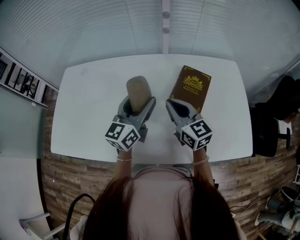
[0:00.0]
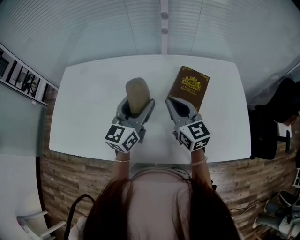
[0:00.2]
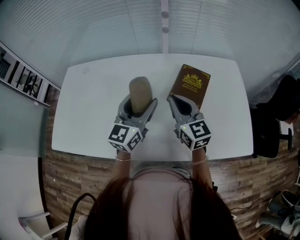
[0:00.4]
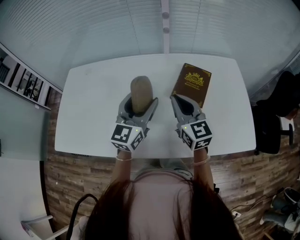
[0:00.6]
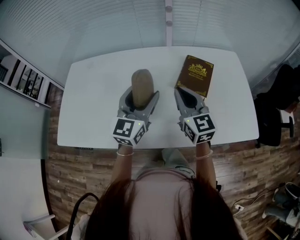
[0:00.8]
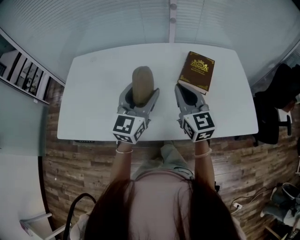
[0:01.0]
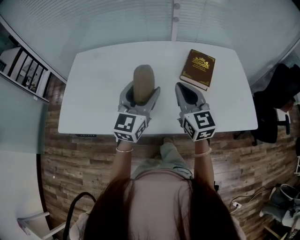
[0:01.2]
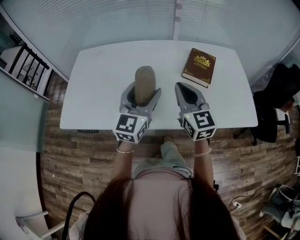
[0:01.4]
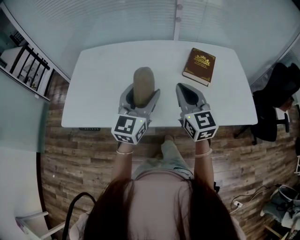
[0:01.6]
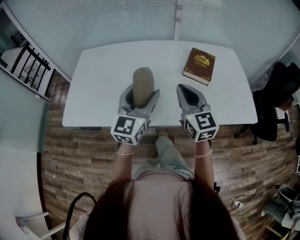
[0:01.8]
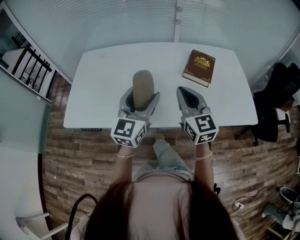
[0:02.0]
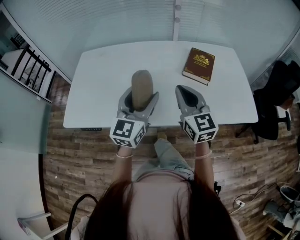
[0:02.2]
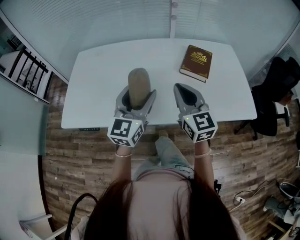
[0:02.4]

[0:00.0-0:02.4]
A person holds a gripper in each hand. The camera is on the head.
0:00.0 to 0:01.2: The left gripper goes some 15 cm backward and to the left. The right gripper travels backward by some 10 cm.
0:01.2 to 0:02.4: Both grippers move backward, roughly 5 cm.

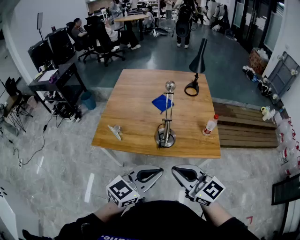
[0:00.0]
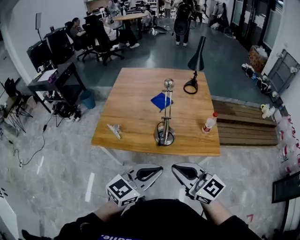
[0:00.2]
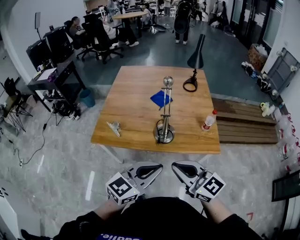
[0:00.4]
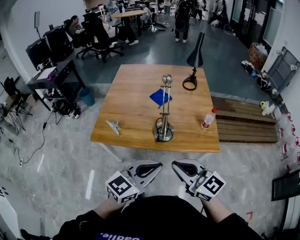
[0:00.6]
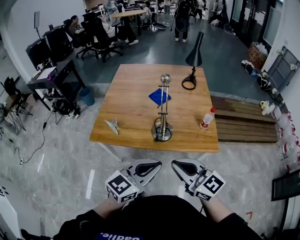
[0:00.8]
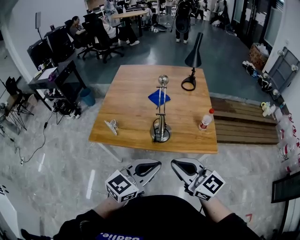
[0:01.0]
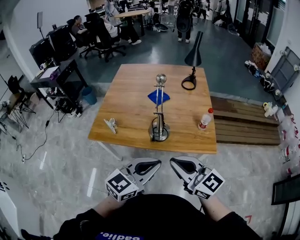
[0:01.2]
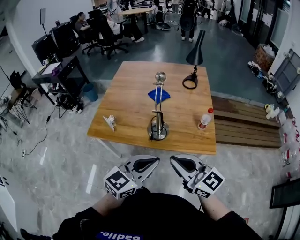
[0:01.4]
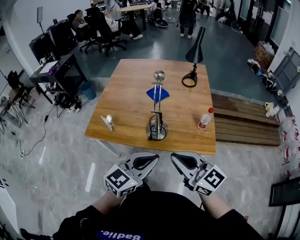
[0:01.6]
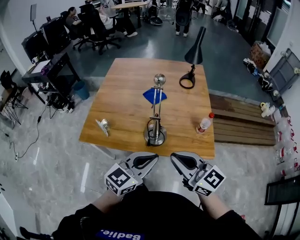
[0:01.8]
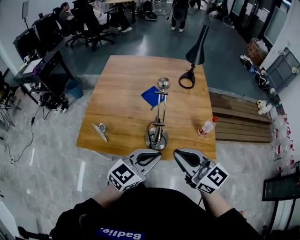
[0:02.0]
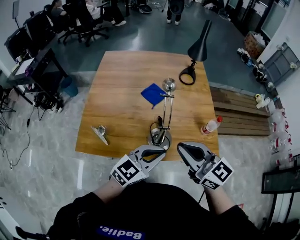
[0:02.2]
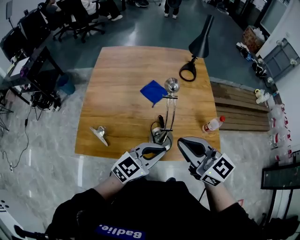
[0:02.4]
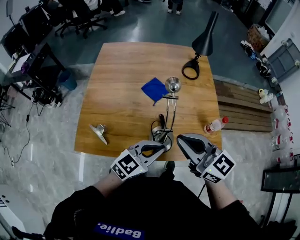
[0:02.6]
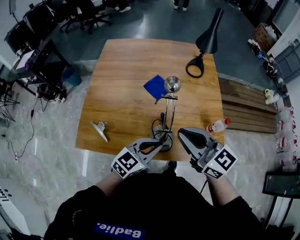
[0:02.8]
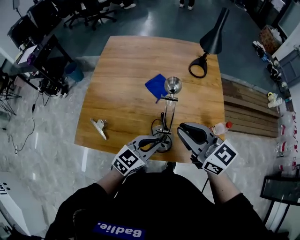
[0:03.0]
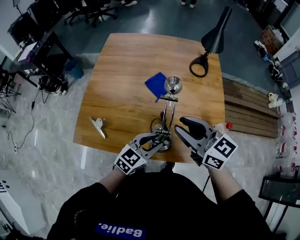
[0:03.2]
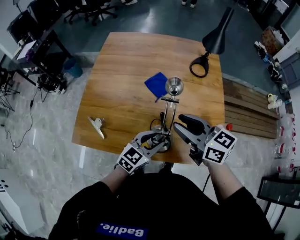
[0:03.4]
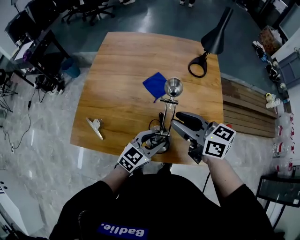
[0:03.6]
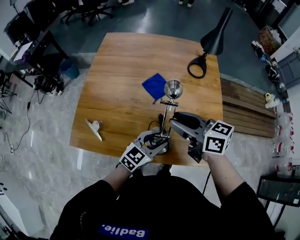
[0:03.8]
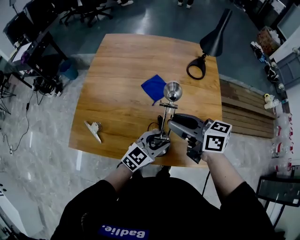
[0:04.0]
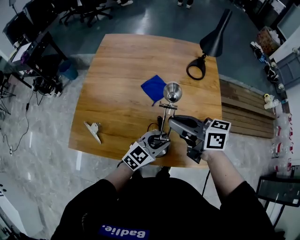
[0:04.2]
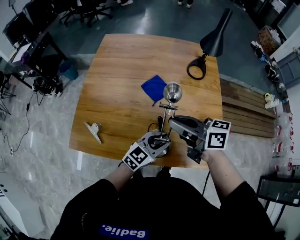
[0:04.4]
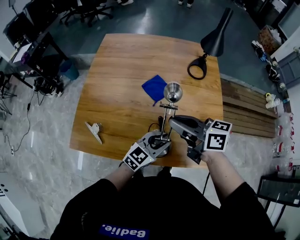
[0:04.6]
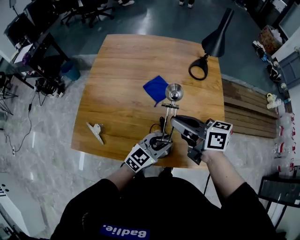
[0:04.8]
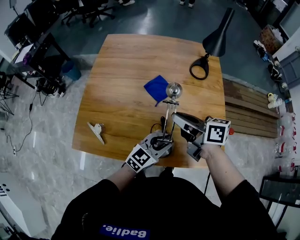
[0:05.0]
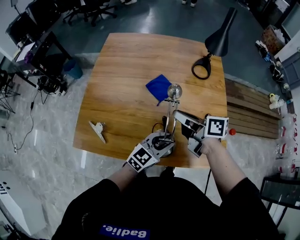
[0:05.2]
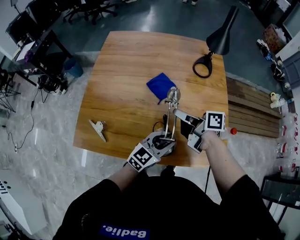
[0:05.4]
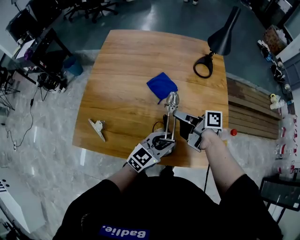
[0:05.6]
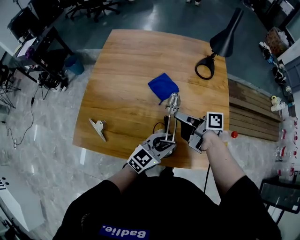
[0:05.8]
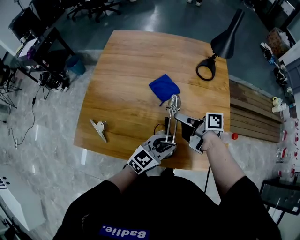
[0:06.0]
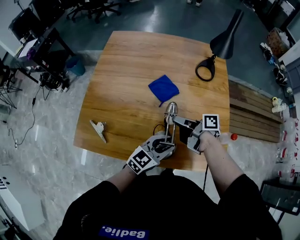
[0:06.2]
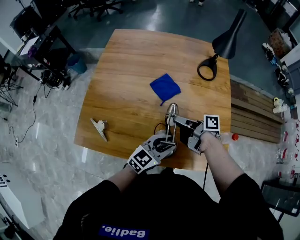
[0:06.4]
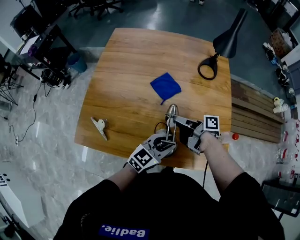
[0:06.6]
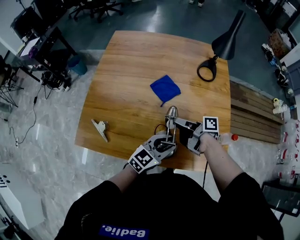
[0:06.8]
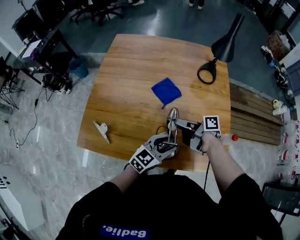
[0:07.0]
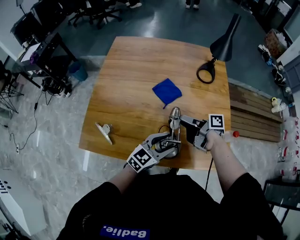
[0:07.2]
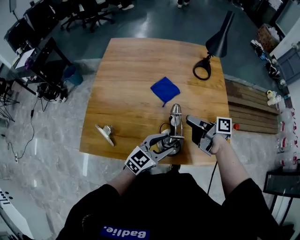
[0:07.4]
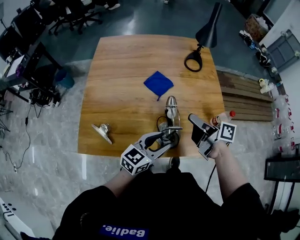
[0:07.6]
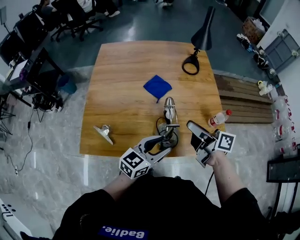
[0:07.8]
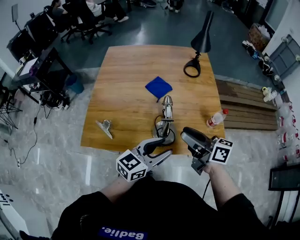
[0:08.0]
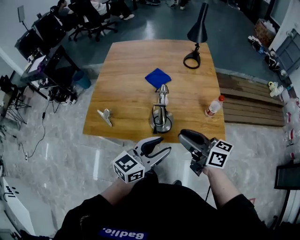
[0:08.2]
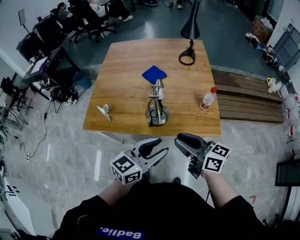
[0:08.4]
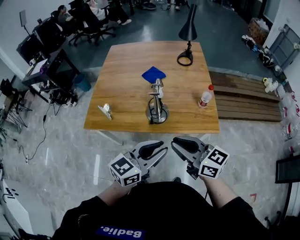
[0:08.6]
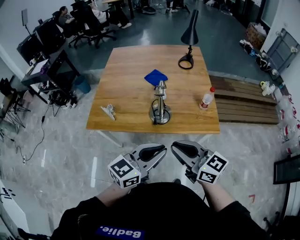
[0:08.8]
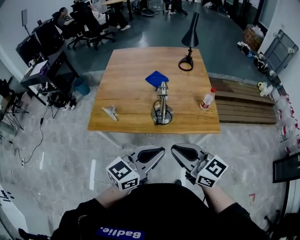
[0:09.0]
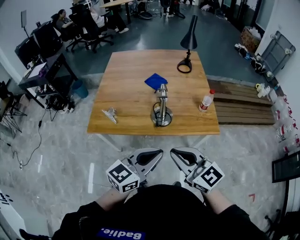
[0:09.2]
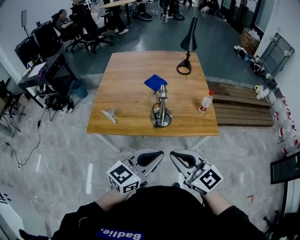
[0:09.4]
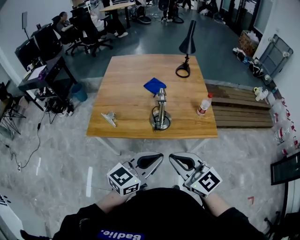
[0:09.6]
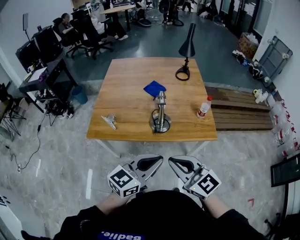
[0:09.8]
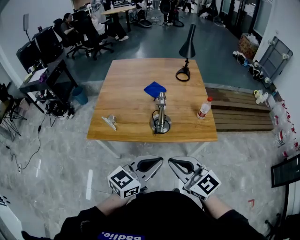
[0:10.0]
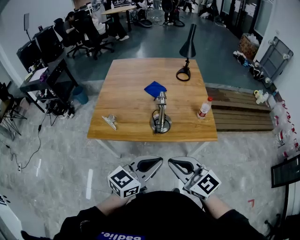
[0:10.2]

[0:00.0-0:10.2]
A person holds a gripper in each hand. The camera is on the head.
0:00.0 to 0:01.4: Both grippers move to the right, some 5 cm.
0:01.4 to 0:03.0: The left gripper heads forward and downward, covering approximately 30 cm. The right gripper goes about 30 cm forward.
0:03.0 to 0:04.4: The right gripper travels forward by approximately 5 cm, turns by some 30 degrees, and opens, then closes again, while the left gripper moves some 5 cm, and opens.
0:04.4 to 0:05.8: The right gripper heads downward and forward, covering roughly 15 cm, and rotates some 40 degrees.
0:05.8 to 0:07.2: The right gripper opens up. Meanwhile the left gripper opens up.
0:07.2 to 0:08.8: Both grippers move backward and upward, some 40 cm. The left gripper closes its fingers. Meanwhile the right gripper twists about 70 degrees counterclockwise, seen from behind, and closes.
0:08.8 to 0:10.2: The right gripper changes place by approximately 5 cm, and turns by about 20 degrees.

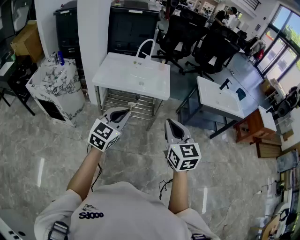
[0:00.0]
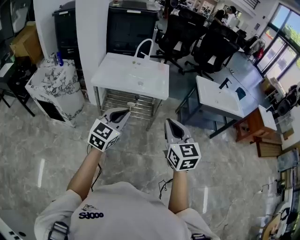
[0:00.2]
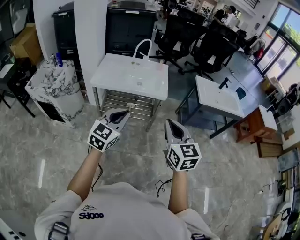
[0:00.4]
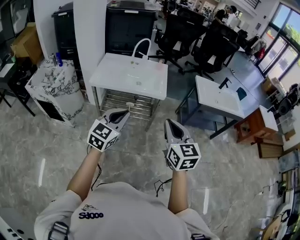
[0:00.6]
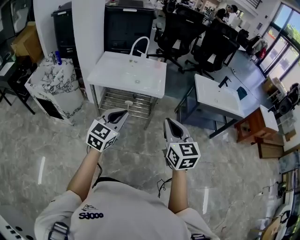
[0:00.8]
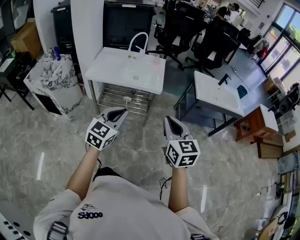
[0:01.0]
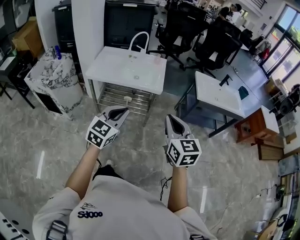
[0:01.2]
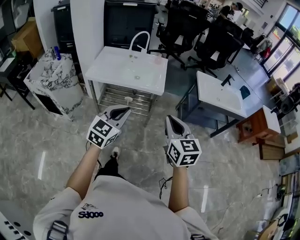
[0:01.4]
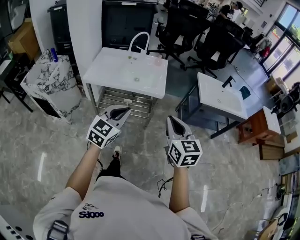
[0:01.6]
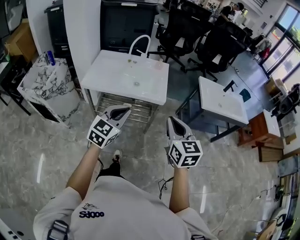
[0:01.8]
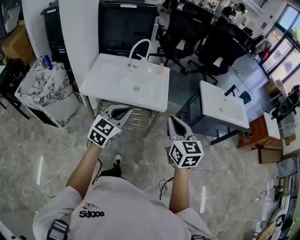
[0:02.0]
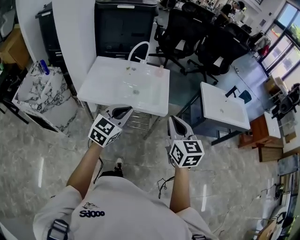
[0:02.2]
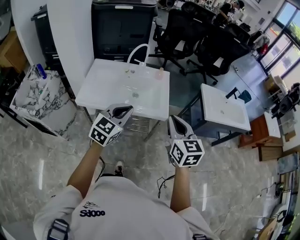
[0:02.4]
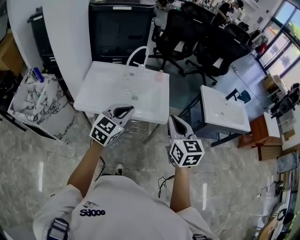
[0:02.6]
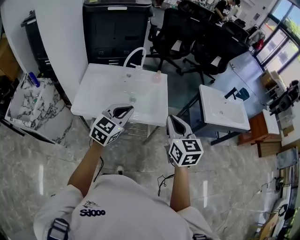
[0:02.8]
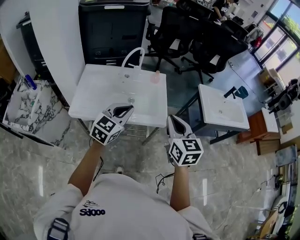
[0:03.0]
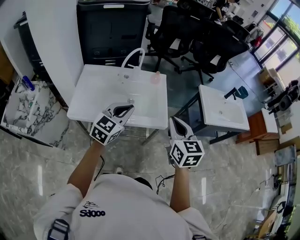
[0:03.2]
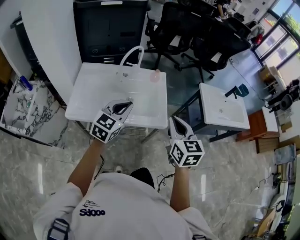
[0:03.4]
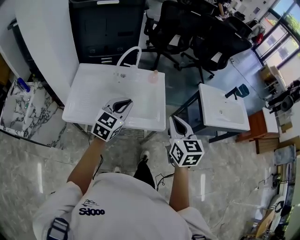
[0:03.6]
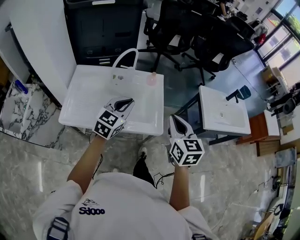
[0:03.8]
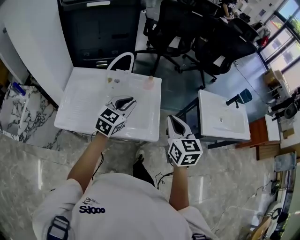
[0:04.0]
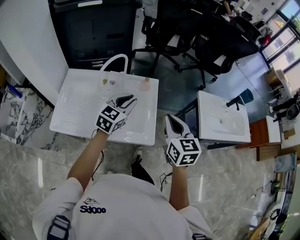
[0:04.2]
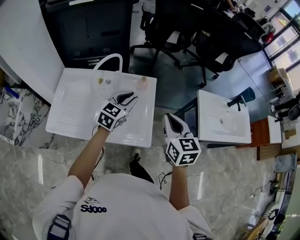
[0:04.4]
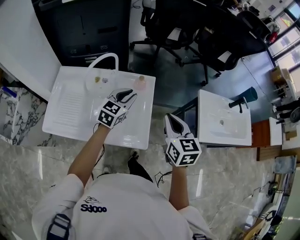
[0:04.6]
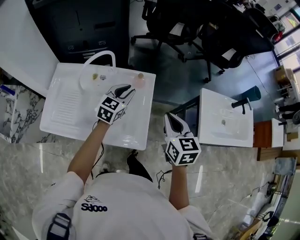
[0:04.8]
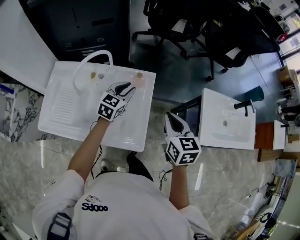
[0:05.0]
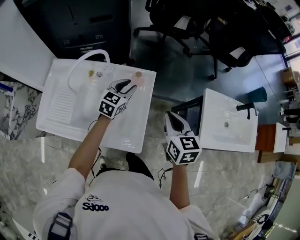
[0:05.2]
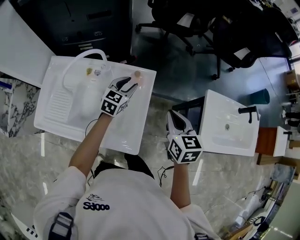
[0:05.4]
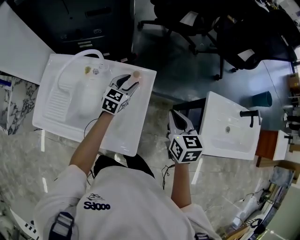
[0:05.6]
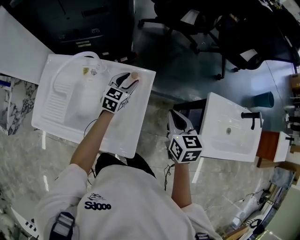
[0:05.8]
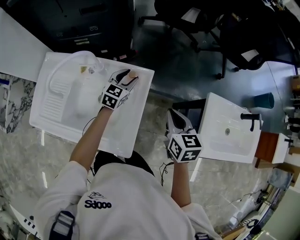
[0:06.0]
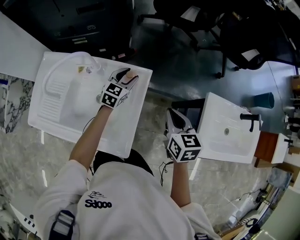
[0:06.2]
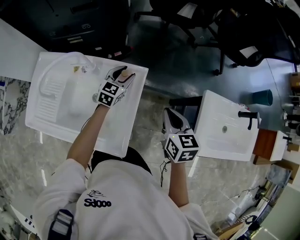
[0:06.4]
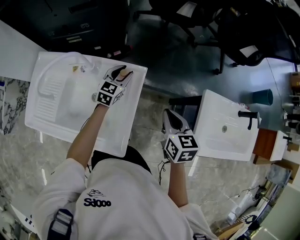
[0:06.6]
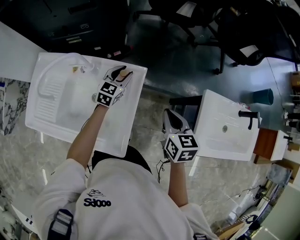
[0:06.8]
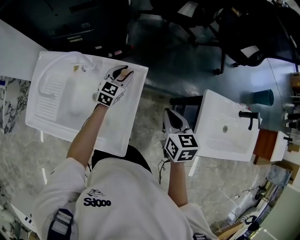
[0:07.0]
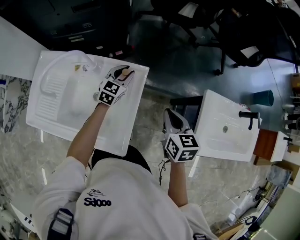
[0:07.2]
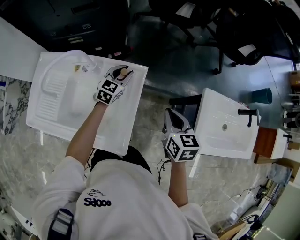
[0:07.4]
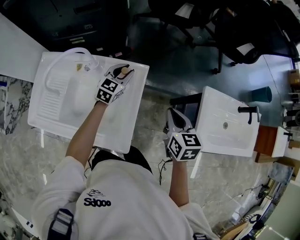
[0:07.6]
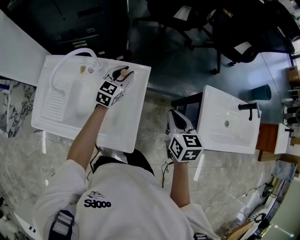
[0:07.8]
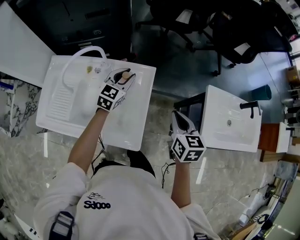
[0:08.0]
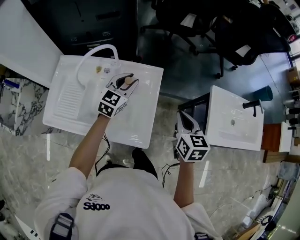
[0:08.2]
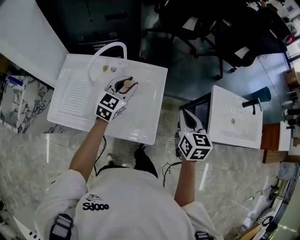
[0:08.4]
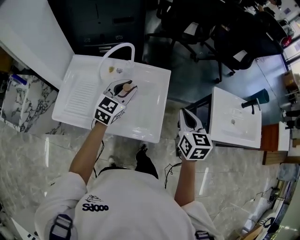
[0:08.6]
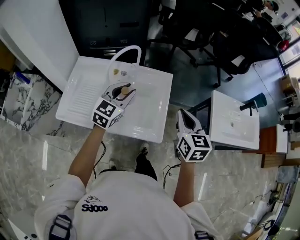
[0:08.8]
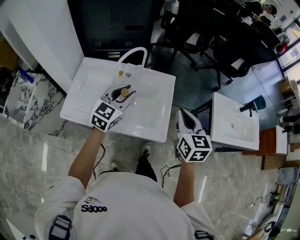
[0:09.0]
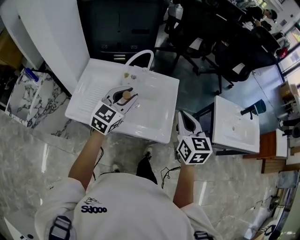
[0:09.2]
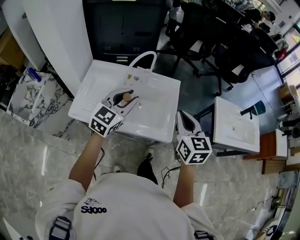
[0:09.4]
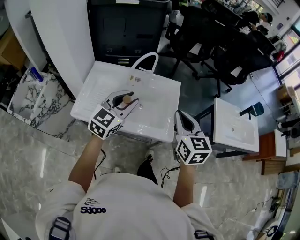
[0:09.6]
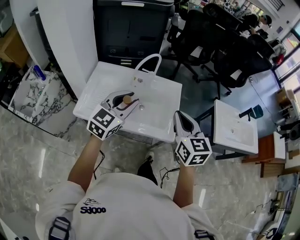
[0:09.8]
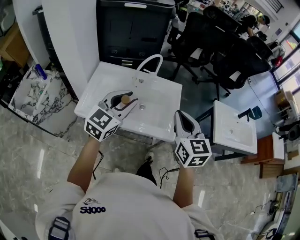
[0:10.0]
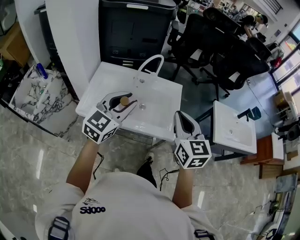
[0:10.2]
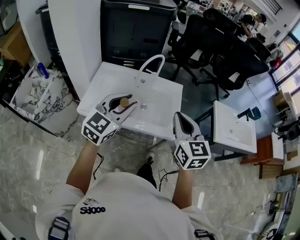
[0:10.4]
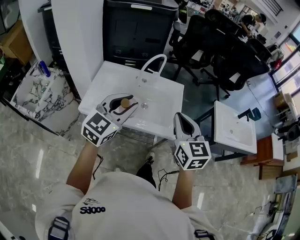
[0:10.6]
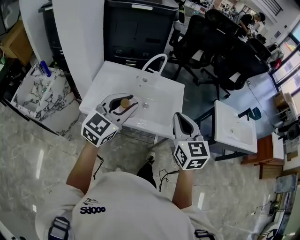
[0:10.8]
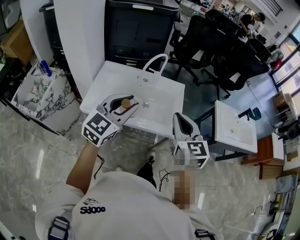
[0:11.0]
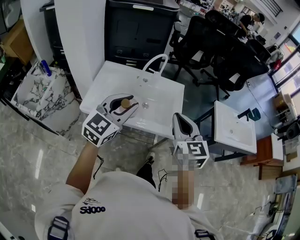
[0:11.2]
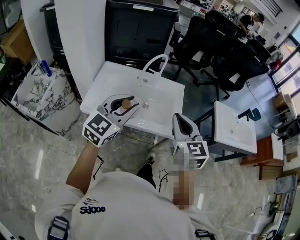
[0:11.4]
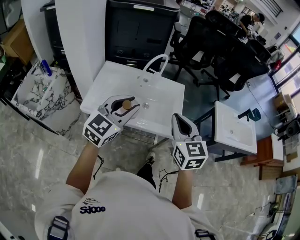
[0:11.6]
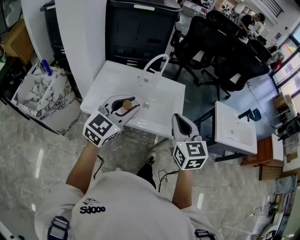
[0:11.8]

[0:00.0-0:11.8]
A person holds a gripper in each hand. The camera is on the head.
0:00.0 to 0:01.4: The grippers both shift to the right by approximately 10 cm.
0:01.4 to 0:03.0: Both grippers travel together forward, some 30 cm.
0:03.0 to 0:04.4: Both grippers travel together forward, roughly 25 cm.
0:04.4 to 0:06.0: The right gripper travels forward, downward and to the right by about 20 cm; the left gripper goes roughly 25 cm forward and downward, and opens up.
0:06.0 to 0:07.4: The grippers stay close to where they were, moving slightly.
0:07.4 to 0:08.8: Both grippers travel together backward, upward and to the left, approximately 25 cm.
0:08.8 to 0:10.4: The left gripper shifts some 25 cm backward, upward and to the left, while the right gripper goes roughly 20 cm backward, to the left and upward.
0:10.4 to 0:11.8: There are only small adjustments of the grippers.
